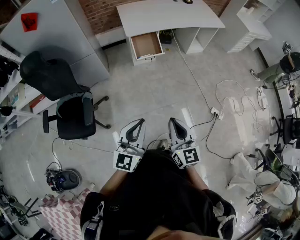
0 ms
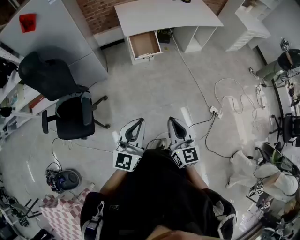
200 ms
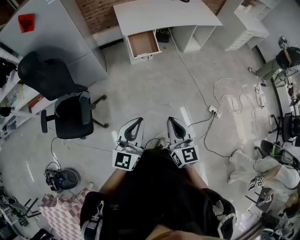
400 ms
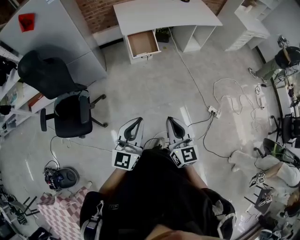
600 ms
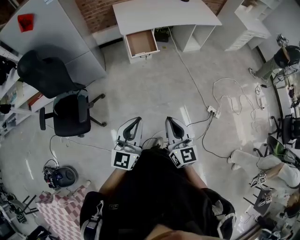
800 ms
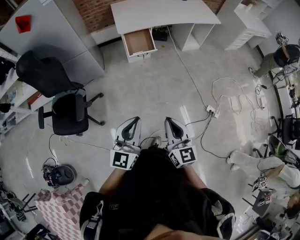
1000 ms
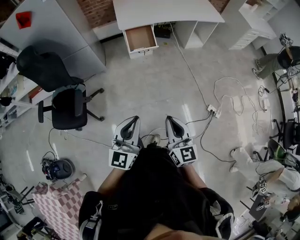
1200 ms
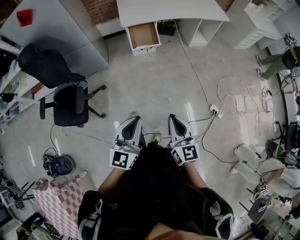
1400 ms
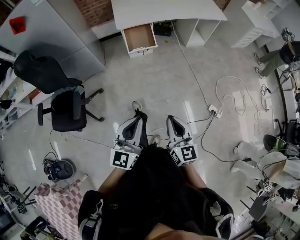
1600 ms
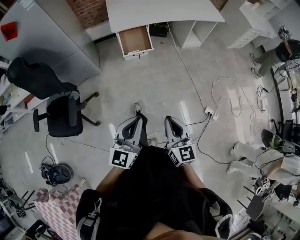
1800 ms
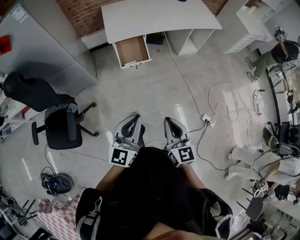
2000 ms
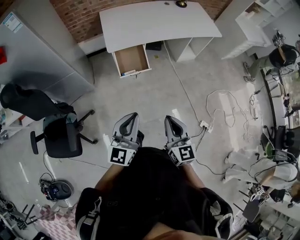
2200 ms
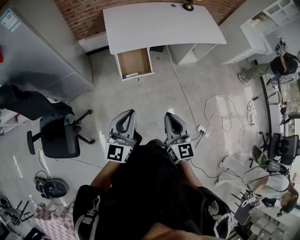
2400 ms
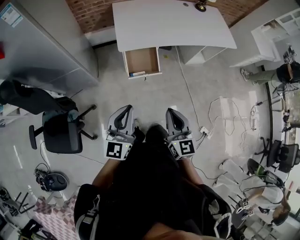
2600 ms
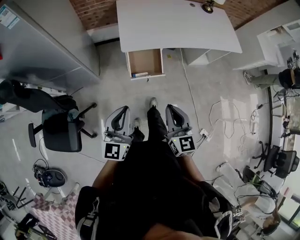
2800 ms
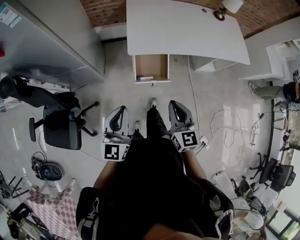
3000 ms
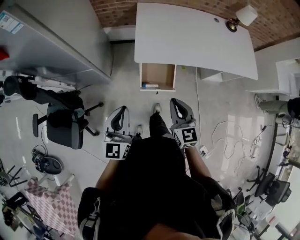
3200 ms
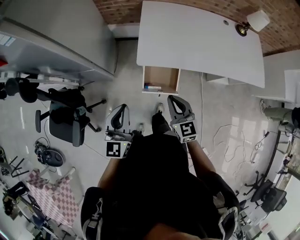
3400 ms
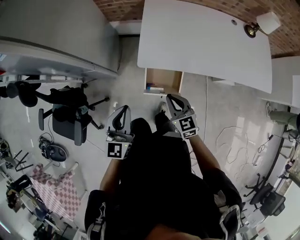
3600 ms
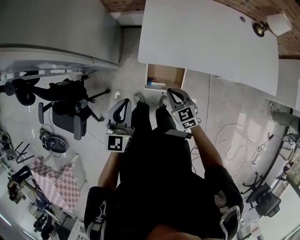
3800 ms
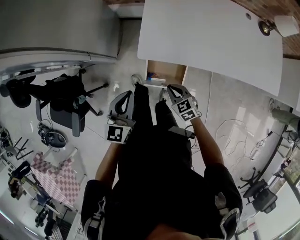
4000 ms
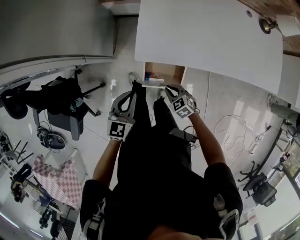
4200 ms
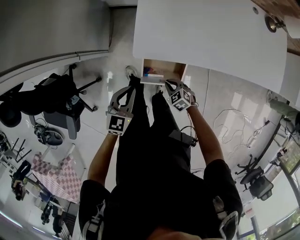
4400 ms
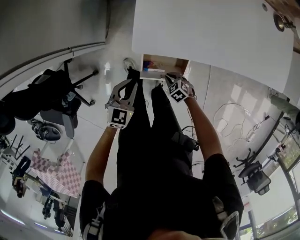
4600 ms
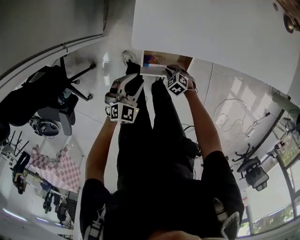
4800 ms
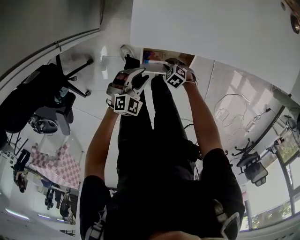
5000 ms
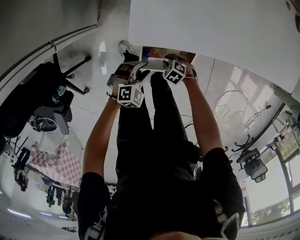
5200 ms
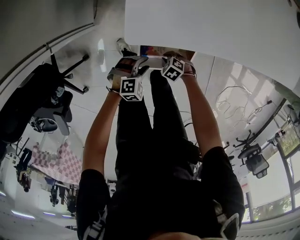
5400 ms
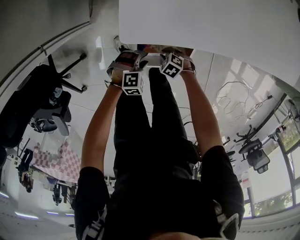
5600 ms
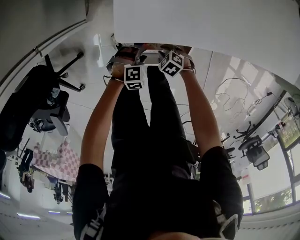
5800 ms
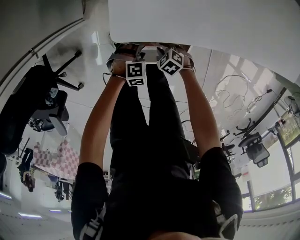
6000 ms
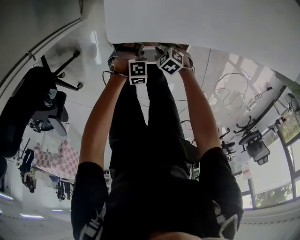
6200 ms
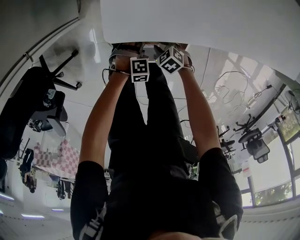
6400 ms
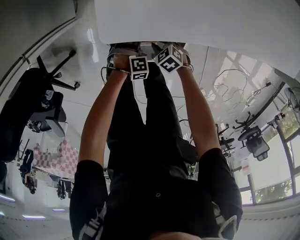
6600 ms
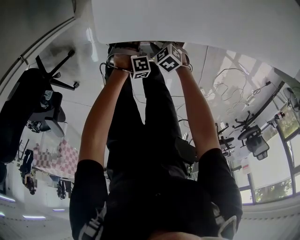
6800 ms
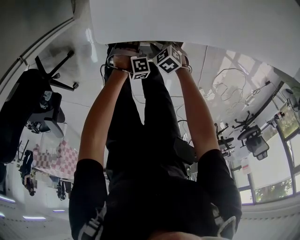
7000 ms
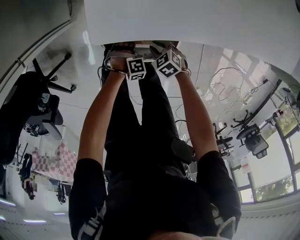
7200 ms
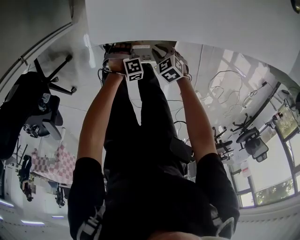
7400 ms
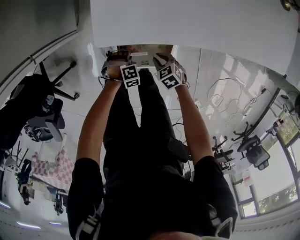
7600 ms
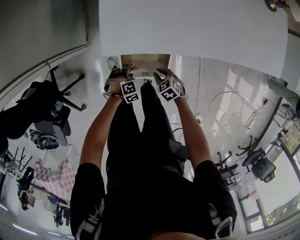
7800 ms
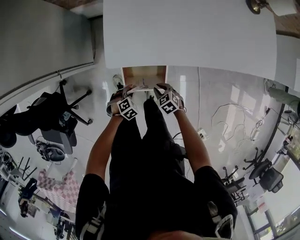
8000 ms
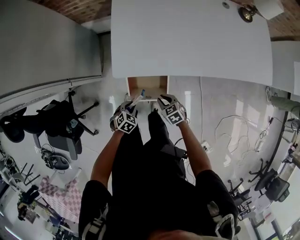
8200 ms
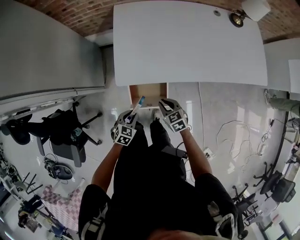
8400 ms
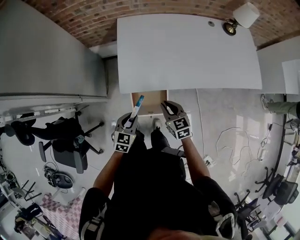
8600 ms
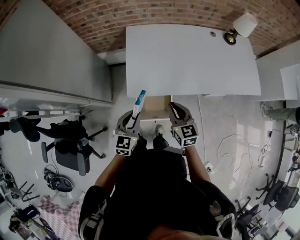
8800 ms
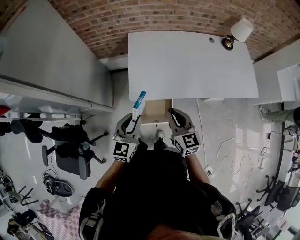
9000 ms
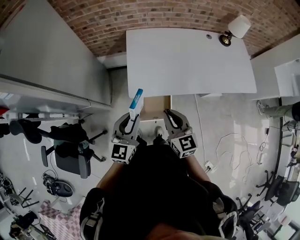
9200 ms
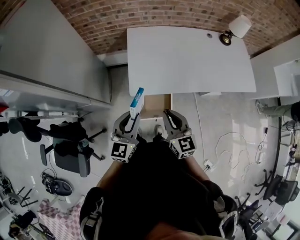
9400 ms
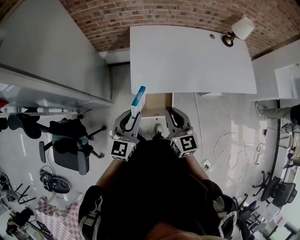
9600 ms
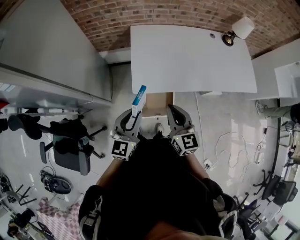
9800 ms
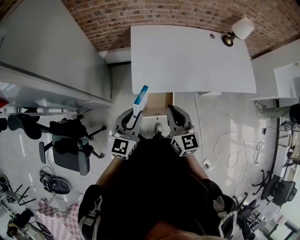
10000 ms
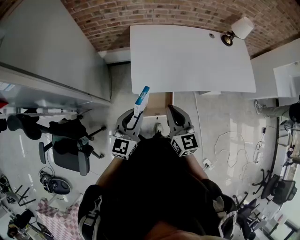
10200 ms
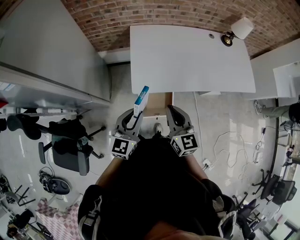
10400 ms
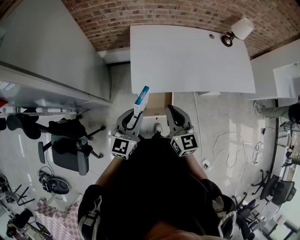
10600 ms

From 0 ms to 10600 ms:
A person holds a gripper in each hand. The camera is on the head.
From 0 ms to 1600 ms: The left gripper goes roughly 10 cm to the right; the right gripper heads to the right and downward, covering some 15 cm.
From 1600 ms to 3000 ms: The two grippers travel together, forward, about 50 cm.
From 3000 ms to 4600 ms: The left gripper heads downward, covering roughly 30 cm, and tilts its fingers roughly 30 degrees downward, while the right gripper goes approximately 50 cm downward, and tilts its fingers approximately 50 degrees downward.
From 4600 ms to 6000 ms: The right gripper moves downward, some 15 cm; the left gripper is displaced downward by about 30 cm, tips its fingers downward by about 30 degrees, and opens its fingers.
From 6000 ms to 7600 ms: The left gripper closes up, while the right gripper moves upward, about 10 cm.
From 7600 ms to 9000 ms: The grippers both shift upward by approximately 60 cm. The left gripper tips its fingers upward by roughly 60 degrees. Meanwhile the right gripper angles its fingers upward, by about 50 degrees.
From 9000 ms to 10600 ms: The right gripper changes place by roughly 5 cm.

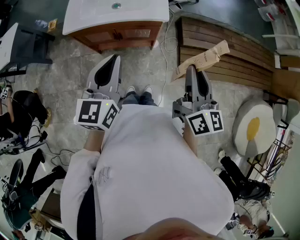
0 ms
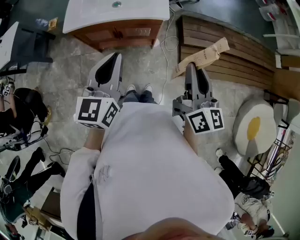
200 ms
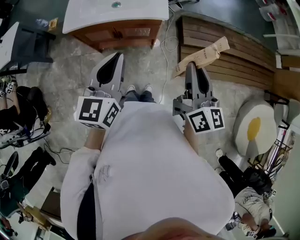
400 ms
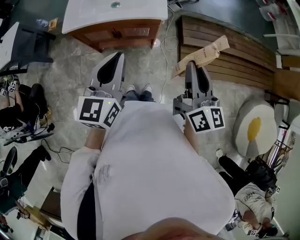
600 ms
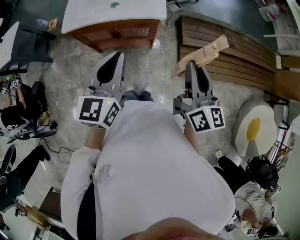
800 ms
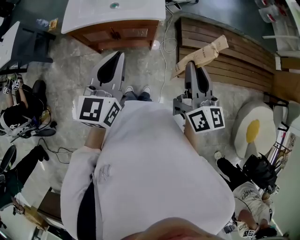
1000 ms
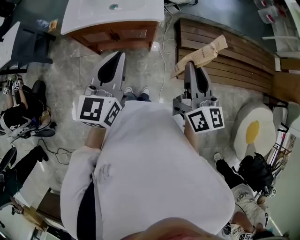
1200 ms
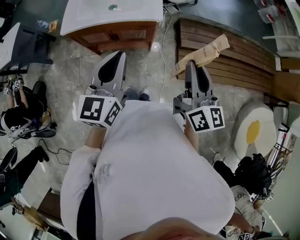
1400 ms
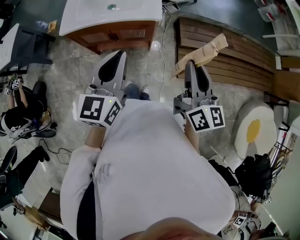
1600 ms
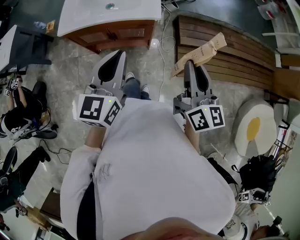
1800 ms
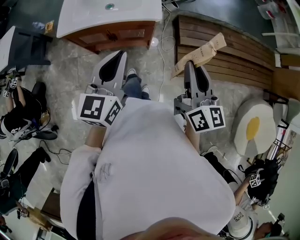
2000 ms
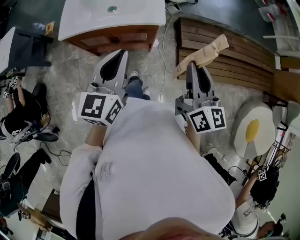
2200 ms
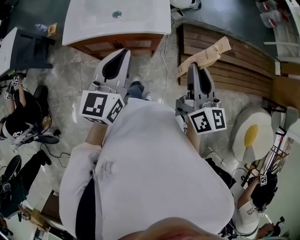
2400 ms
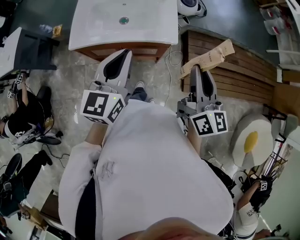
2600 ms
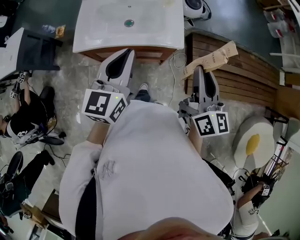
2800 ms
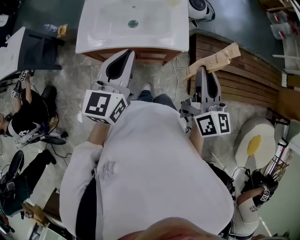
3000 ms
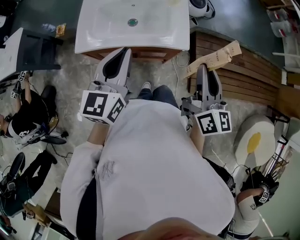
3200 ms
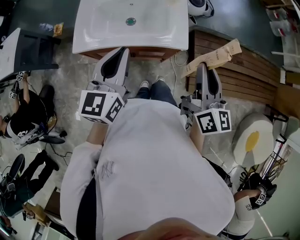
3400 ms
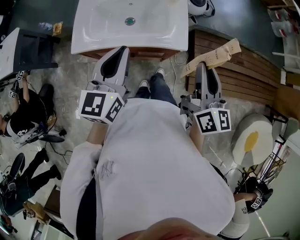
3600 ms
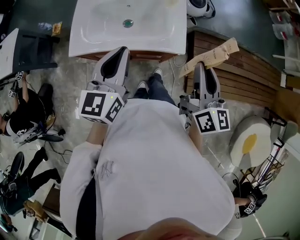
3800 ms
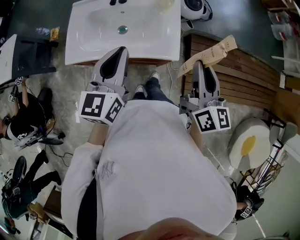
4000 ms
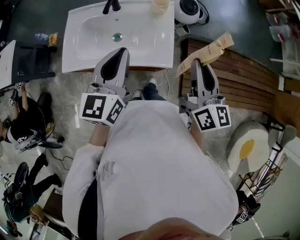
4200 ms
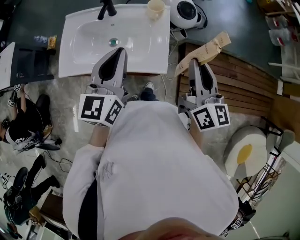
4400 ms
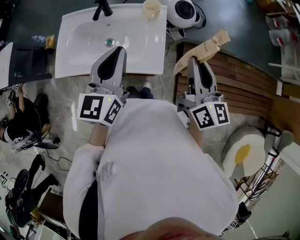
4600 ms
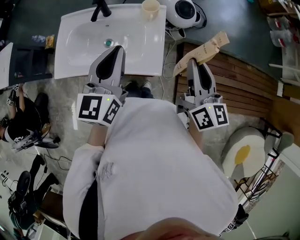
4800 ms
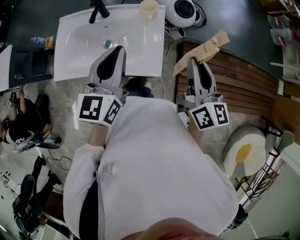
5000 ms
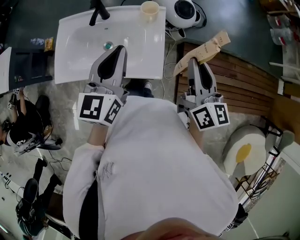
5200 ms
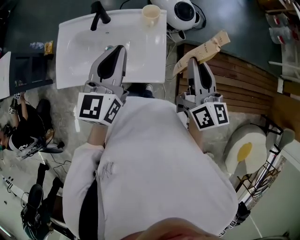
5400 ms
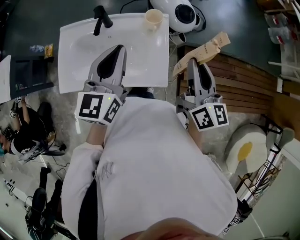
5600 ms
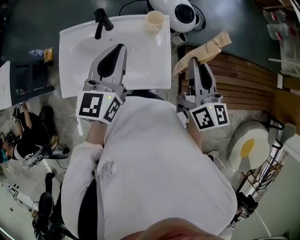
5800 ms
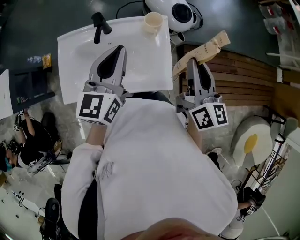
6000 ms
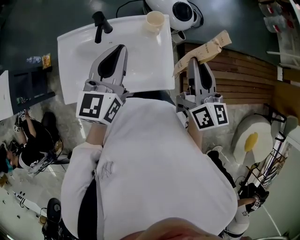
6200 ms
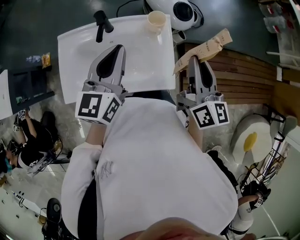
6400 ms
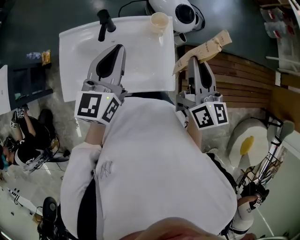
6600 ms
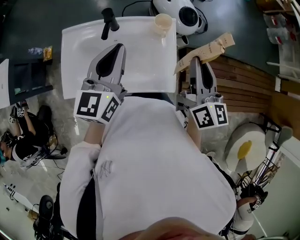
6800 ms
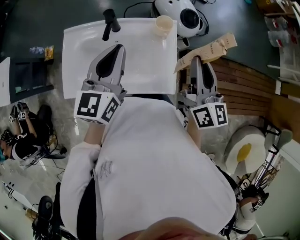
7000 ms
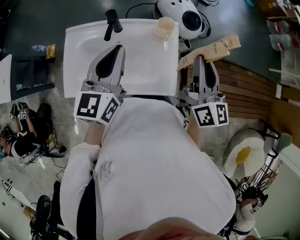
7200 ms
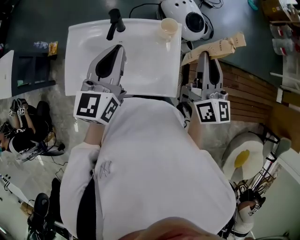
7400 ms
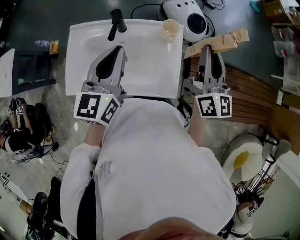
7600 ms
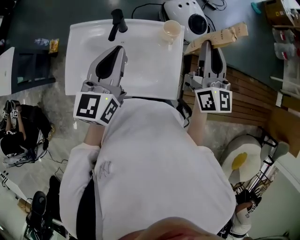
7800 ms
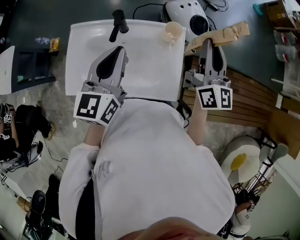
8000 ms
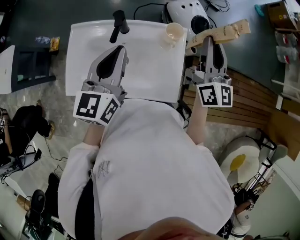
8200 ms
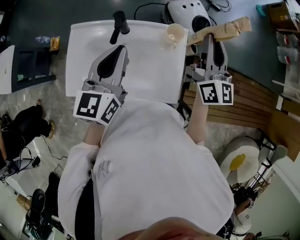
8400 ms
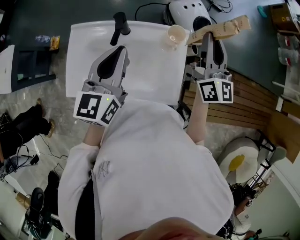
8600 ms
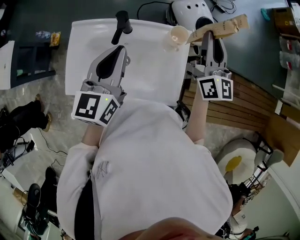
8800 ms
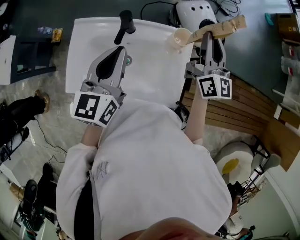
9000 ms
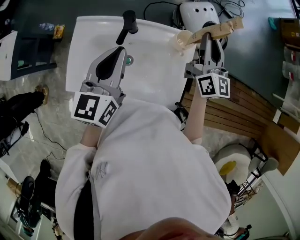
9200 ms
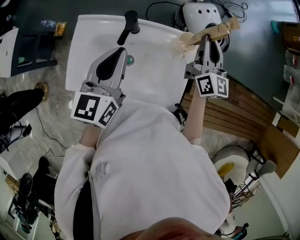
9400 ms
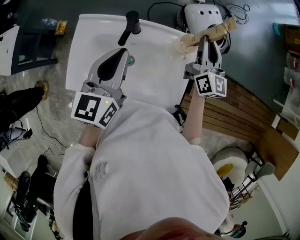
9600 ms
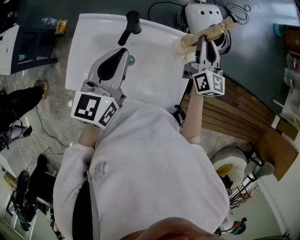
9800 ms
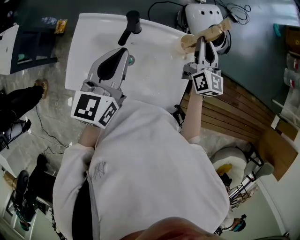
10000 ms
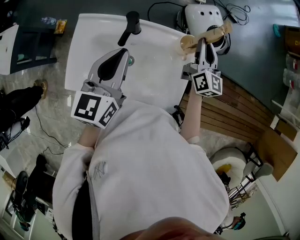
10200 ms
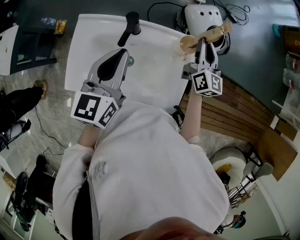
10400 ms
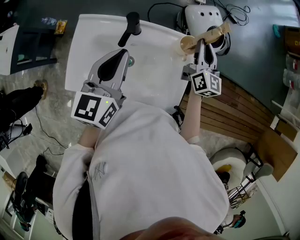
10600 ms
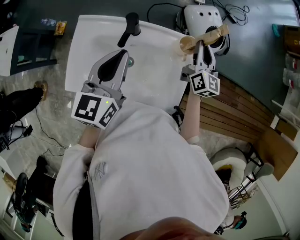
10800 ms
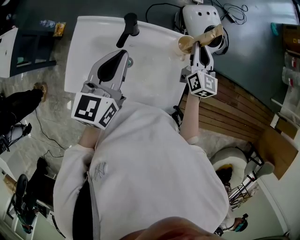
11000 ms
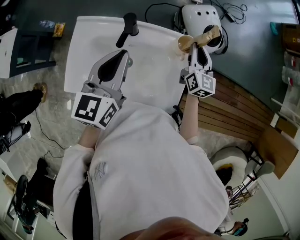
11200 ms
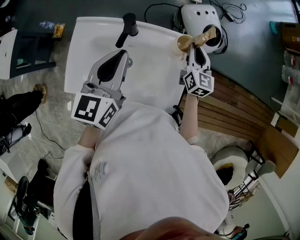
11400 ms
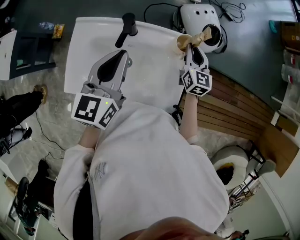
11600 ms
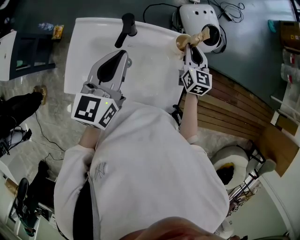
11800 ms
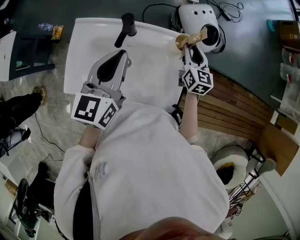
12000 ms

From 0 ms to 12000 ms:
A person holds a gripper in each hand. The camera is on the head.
From 0 ms to 1600 ms: The left gripper is displaced to the right by some 5 cm.
From 1600 ms to 3000 ms: The two grippers go some 20 cm forward and to the left.
From 3000 ms to 4400 ms: Both grippers travel together forward and to the right, some 15 cm.
From 4400 ms to 6000 ms: The grippers both shift forward by about 10 cm.
From 6000 ms to 7600 ms: The left gripper goes about 5 cm to the left, while the right gripper heads forward, covering some 10 cm.
From 7600 ms to 9000 ms: The left gripper changes place by some 5 cm. The right gripper heads forward and downward, covering roughly 15 cm.
From 9000 ms to 10400 ms: The right gripper travels downward by approximately 10 cm.
From 10400 ms to 12000 ms: The right gripper shifts approximately 5 cm downward, and rotates some 20 degrees.

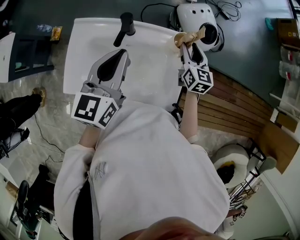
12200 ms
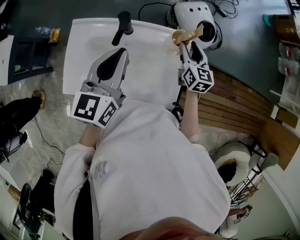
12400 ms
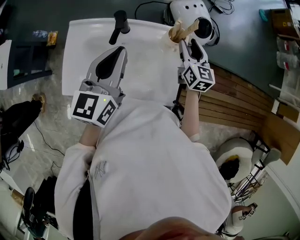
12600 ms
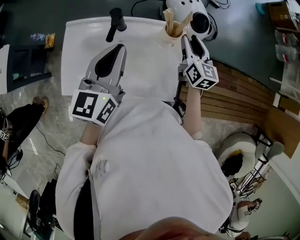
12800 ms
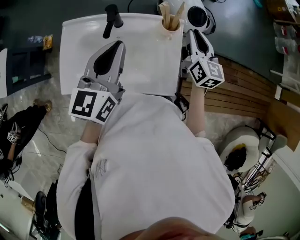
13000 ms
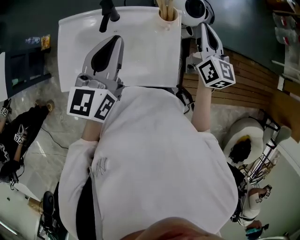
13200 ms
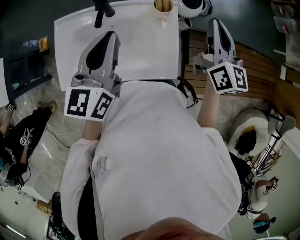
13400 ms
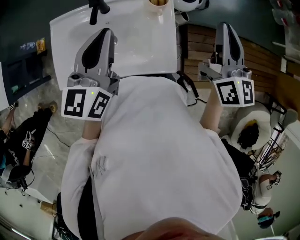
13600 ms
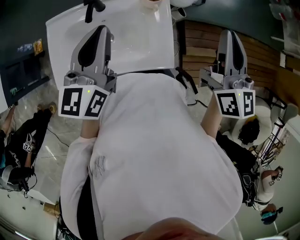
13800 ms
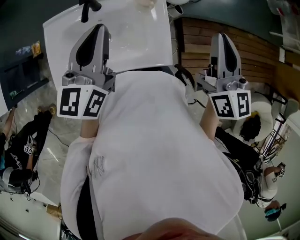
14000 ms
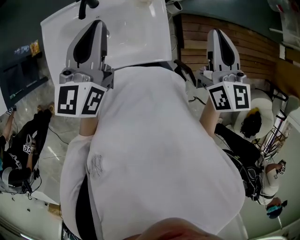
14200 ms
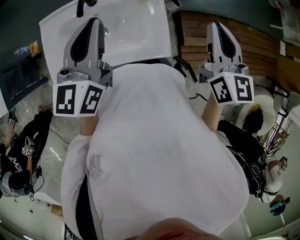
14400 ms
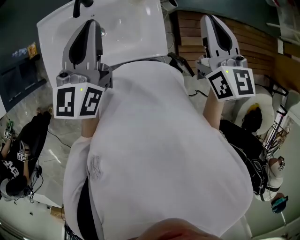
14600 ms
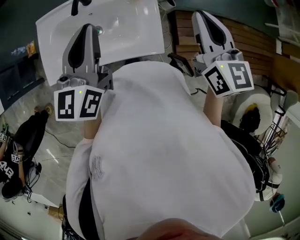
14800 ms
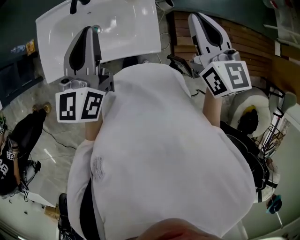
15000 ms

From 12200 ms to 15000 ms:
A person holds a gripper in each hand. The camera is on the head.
From 12200 ms to 13600 ms: The left gripper changes place by roughly 5 cm; the right gripper is displaced upward and backward by about 25 cm, rotates roughly 20 degrees, and closes up.
From 13600 ms to 15000 ms: Both grippers move backward, approximately 5 cm.
